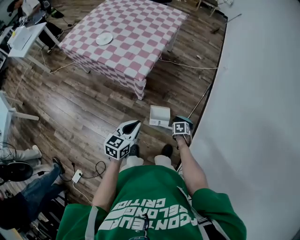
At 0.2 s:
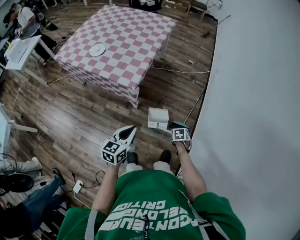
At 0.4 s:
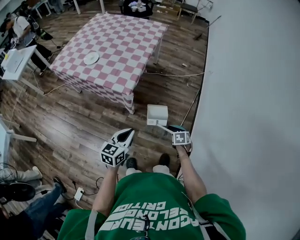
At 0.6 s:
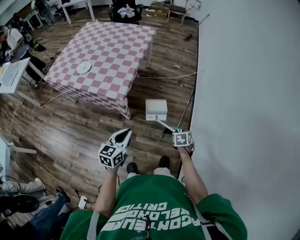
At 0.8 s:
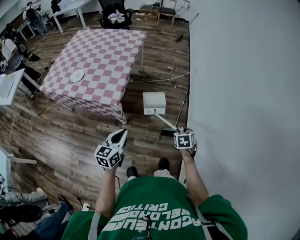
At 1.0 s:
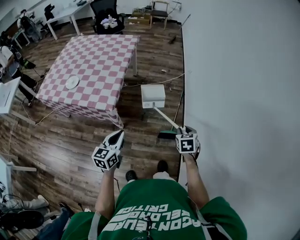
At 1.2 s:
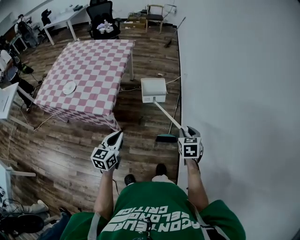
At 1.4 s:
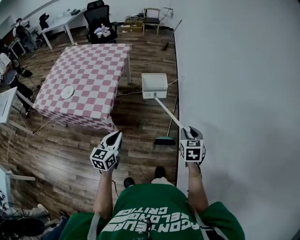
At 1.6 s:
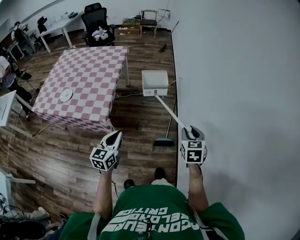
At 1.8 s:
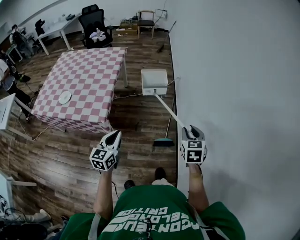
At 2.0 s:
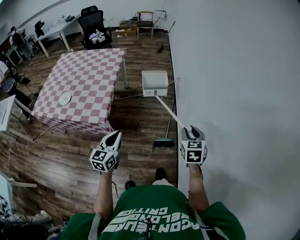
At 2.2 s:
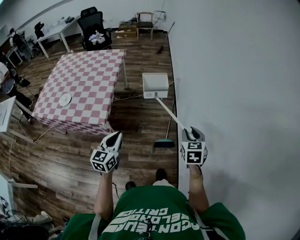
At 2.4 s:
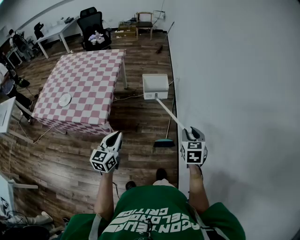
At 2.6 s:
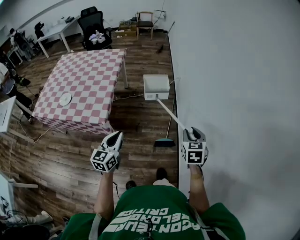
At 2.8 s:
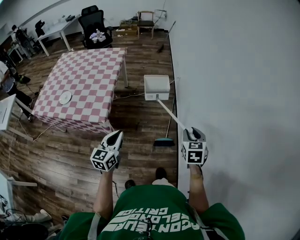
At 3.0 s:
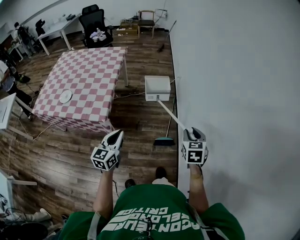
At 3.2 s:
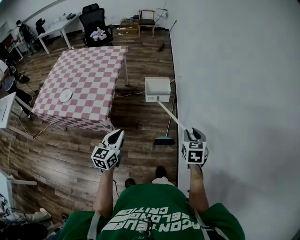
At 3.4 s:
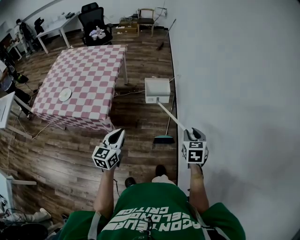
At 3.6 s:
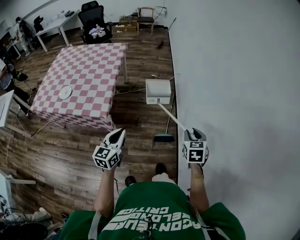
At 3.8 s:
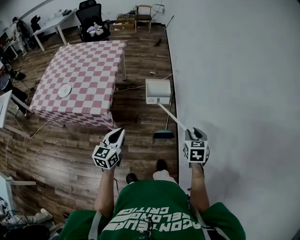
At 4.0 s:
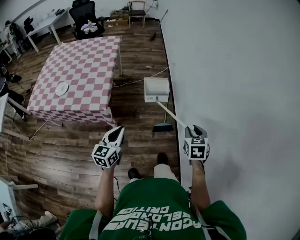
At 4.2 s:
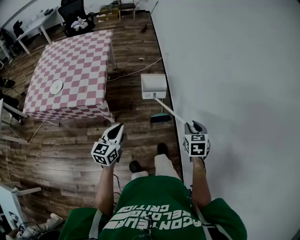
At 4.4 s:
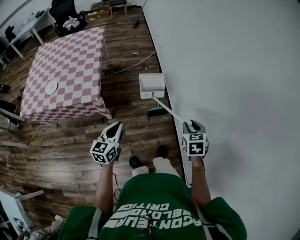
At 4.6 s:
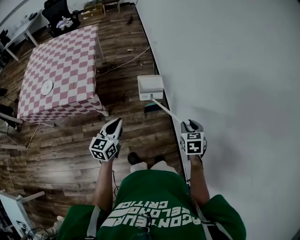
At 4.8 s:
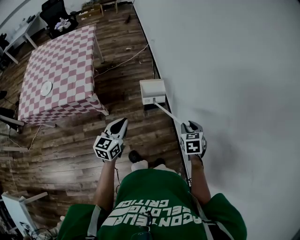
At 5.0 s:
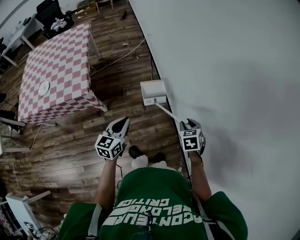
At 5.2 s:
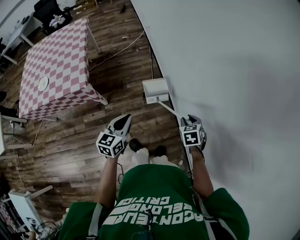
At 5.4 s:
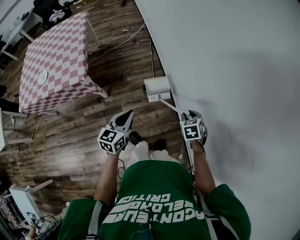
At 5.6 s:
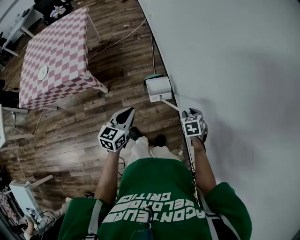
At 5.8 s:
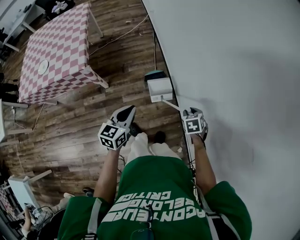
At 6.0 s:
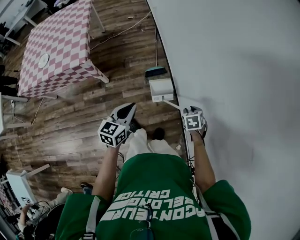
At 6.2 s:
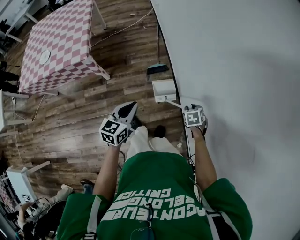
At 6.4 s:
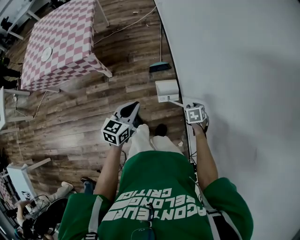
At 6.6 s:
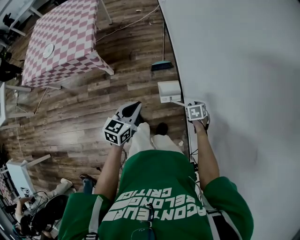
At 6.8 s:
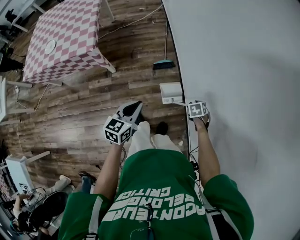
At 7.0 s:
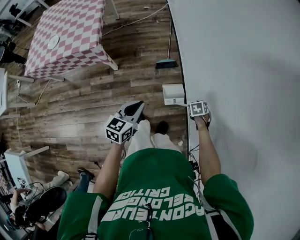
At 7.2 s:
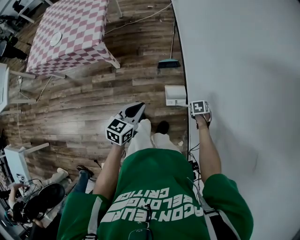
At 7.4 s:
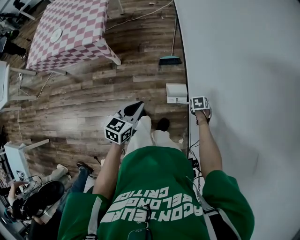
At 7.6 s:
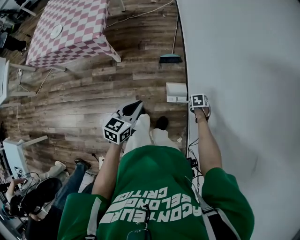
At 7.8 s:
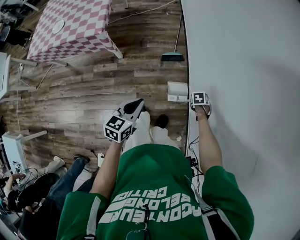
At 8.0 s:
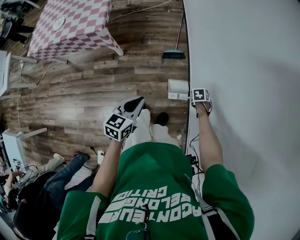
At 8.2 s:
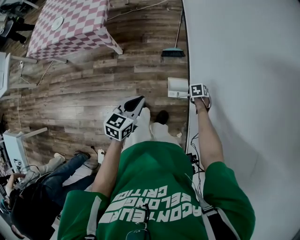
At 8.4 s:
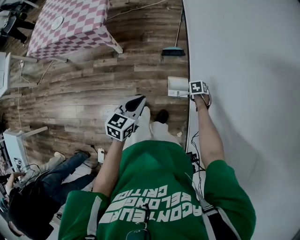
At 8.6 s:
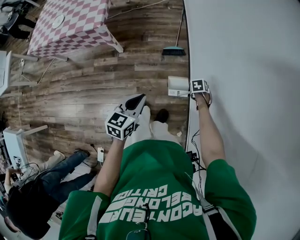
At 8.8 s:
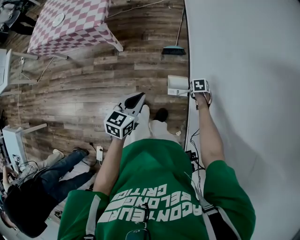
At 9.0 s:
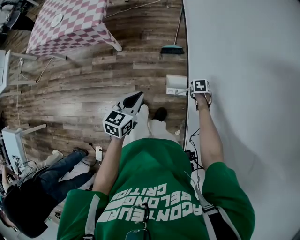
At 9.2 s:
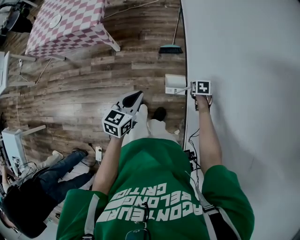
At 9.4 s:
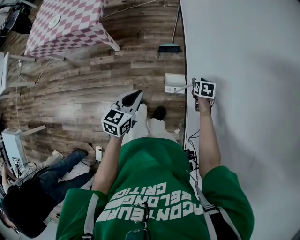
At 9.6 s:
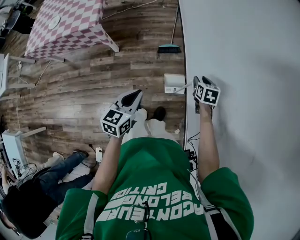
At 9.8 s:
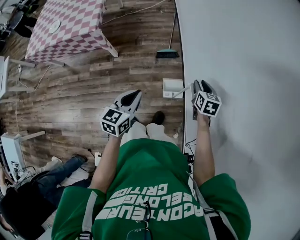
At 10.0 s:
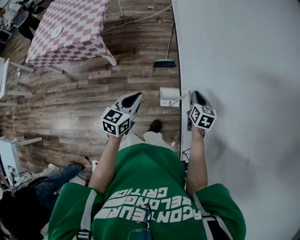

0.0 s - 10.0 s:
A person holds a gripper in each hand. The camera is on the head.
0.0 s - 1.4 s: The left gripper changes place by approximately 15 cm. The right gripper travels upward by roughly 35 cm, and tilts its fingers approximately 40 degrees upward.
1.4 s - 2.8 s: The grippers stay close to where they were, moving slightly.
2.8 s - 4.2 s: The right gripper goes roughly 15 cm backward; the left gripper goes about 10 cm backward.
4.2 s - 5.8 s: The right gripper travels to the right, downward and backward by roughly 30 cm, and turns by approximately 20 degrees. Meanwhile the left gripper goes approximately 25 cm to the right.
5.8 s - 7.2 s: The right gripper moves downward, about 15 cm, while the left gripper shifts by roughly 5 cm.
7.2 s - 8.6 s: The right gripper ends up some 5 cm from where it was.
8.6 s - 10.0 s: The right gripper is displaced upward by some 25 cm, tilts its fingers some 40 degrees upward, and closes its fingers.

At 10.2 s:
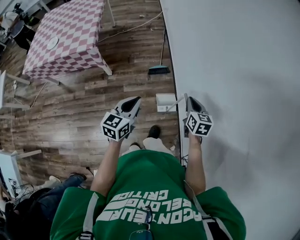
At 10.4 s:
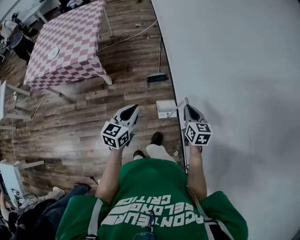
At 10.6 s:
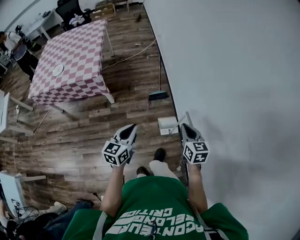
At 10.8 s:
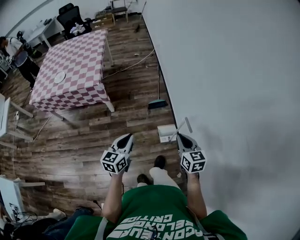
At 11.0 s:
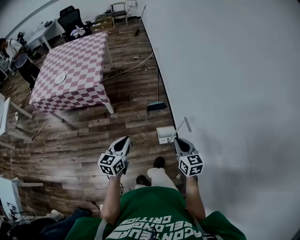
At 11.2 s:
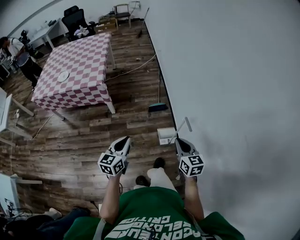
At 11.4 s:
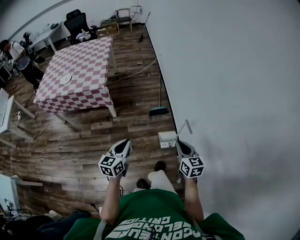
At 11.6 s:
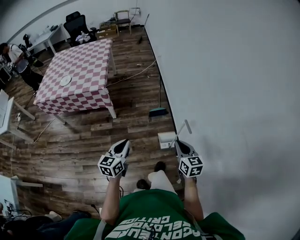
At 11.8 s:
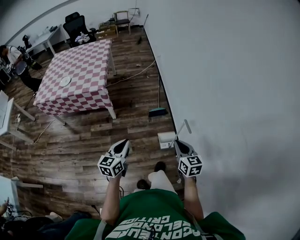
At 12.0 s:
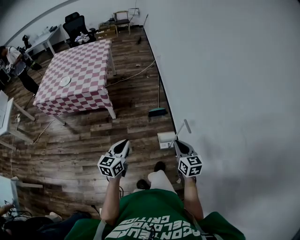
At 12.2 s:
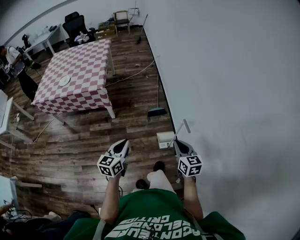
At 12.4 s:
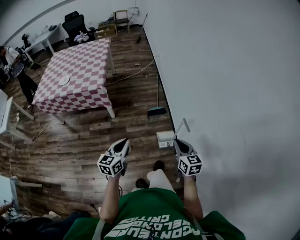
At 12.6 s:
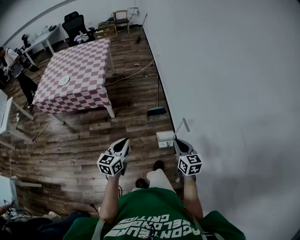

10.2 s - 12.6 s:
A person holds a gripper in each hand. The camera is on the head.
10.2 s - 11.4 s: The two grippers go some 20 cm backward and to the left.
11.4 s - 12.6 s: The grippers stay close to where they were, moving slightly.

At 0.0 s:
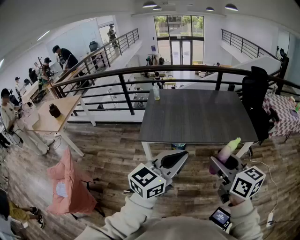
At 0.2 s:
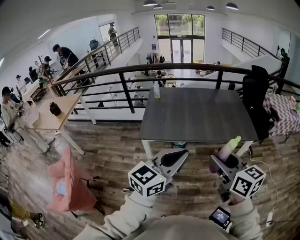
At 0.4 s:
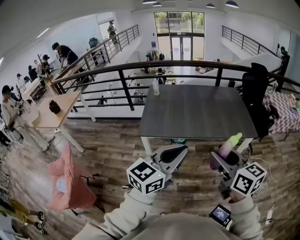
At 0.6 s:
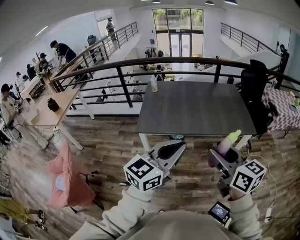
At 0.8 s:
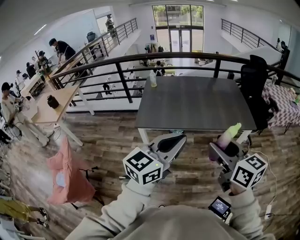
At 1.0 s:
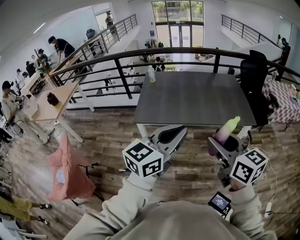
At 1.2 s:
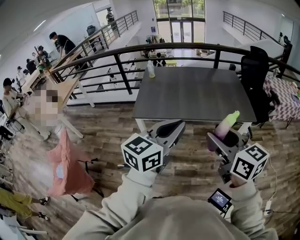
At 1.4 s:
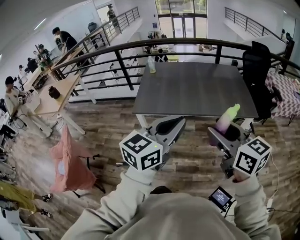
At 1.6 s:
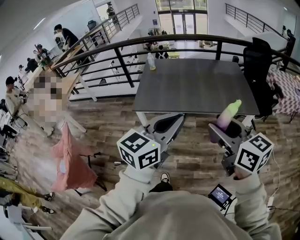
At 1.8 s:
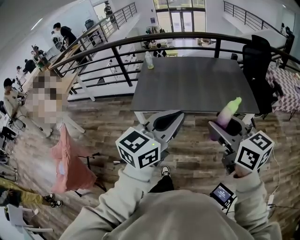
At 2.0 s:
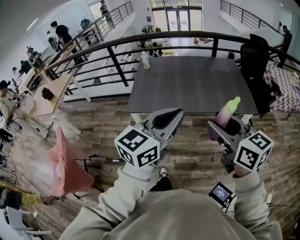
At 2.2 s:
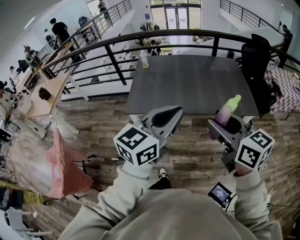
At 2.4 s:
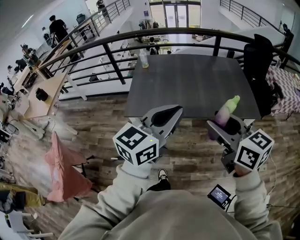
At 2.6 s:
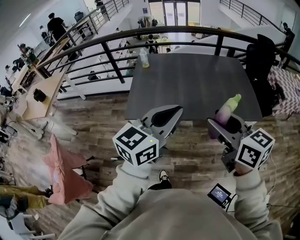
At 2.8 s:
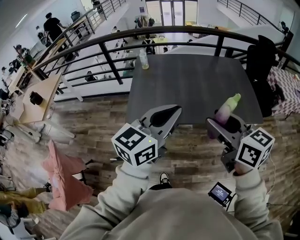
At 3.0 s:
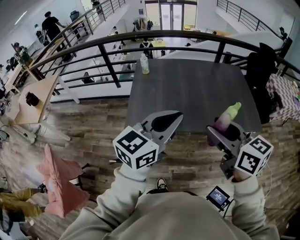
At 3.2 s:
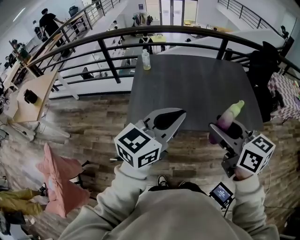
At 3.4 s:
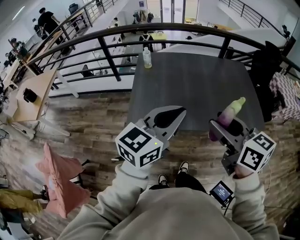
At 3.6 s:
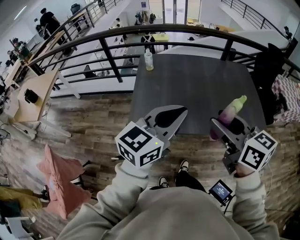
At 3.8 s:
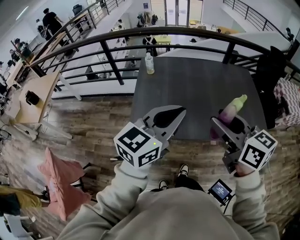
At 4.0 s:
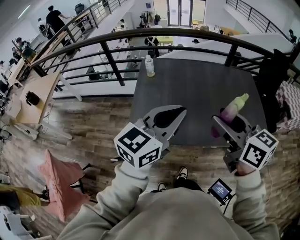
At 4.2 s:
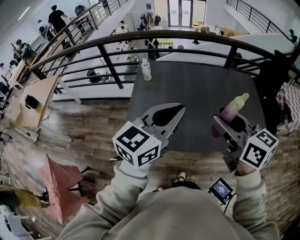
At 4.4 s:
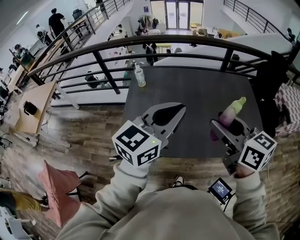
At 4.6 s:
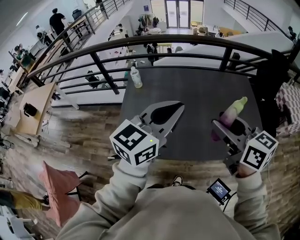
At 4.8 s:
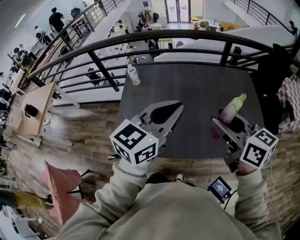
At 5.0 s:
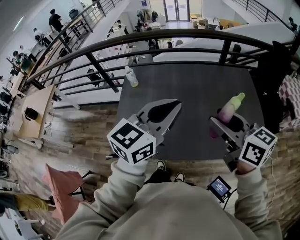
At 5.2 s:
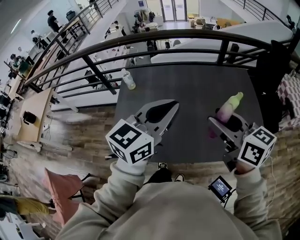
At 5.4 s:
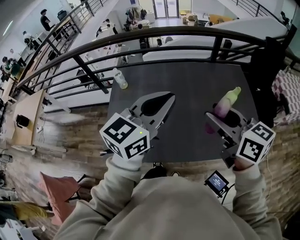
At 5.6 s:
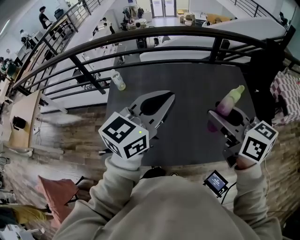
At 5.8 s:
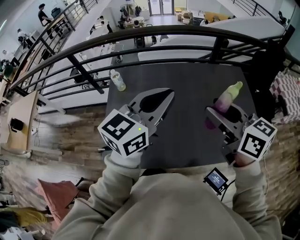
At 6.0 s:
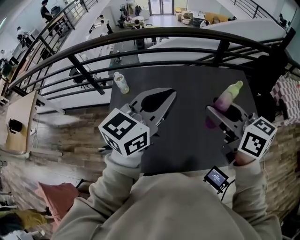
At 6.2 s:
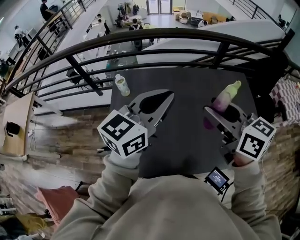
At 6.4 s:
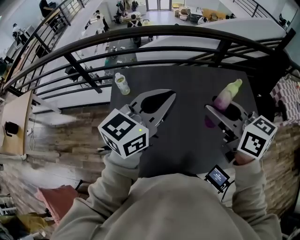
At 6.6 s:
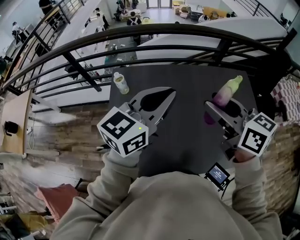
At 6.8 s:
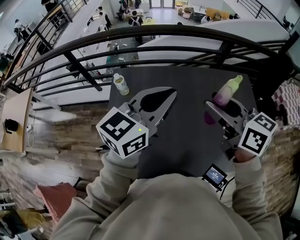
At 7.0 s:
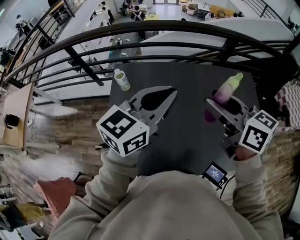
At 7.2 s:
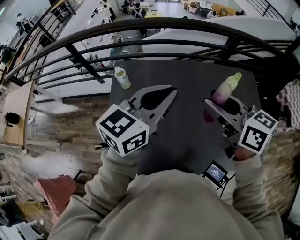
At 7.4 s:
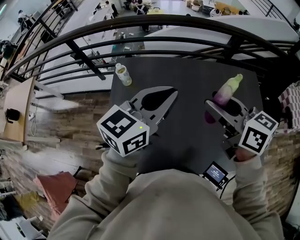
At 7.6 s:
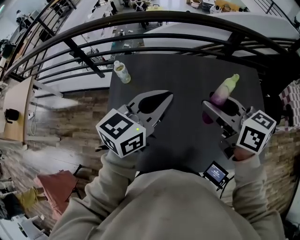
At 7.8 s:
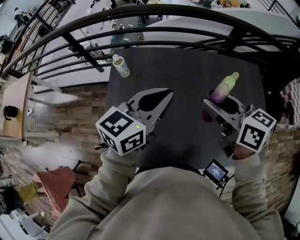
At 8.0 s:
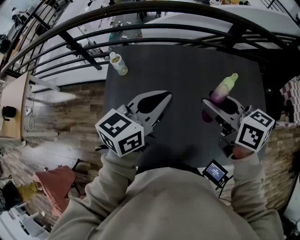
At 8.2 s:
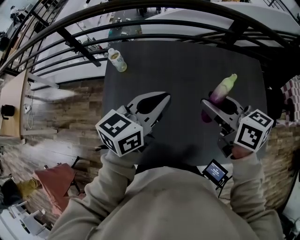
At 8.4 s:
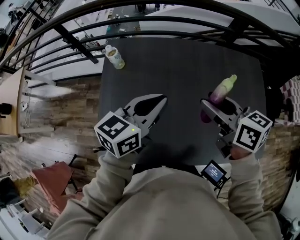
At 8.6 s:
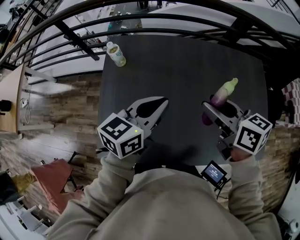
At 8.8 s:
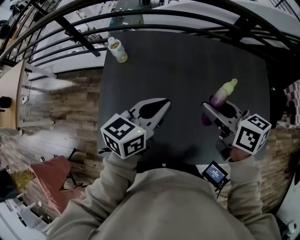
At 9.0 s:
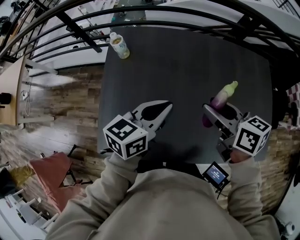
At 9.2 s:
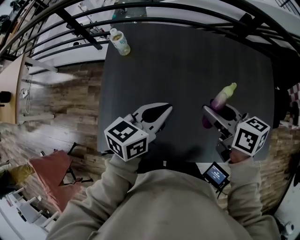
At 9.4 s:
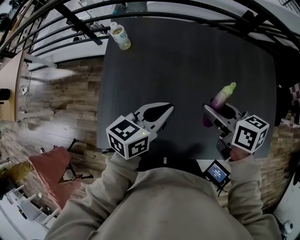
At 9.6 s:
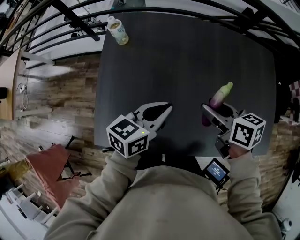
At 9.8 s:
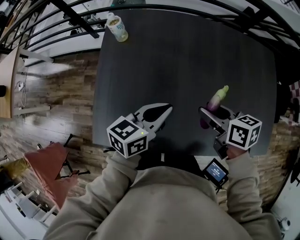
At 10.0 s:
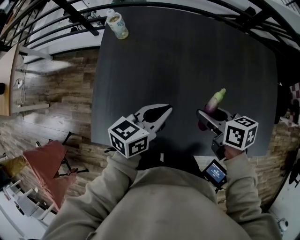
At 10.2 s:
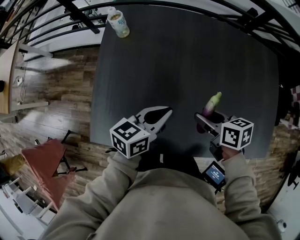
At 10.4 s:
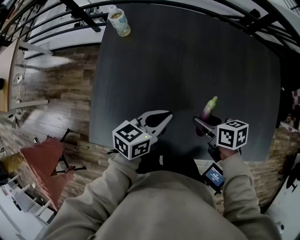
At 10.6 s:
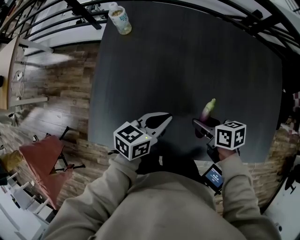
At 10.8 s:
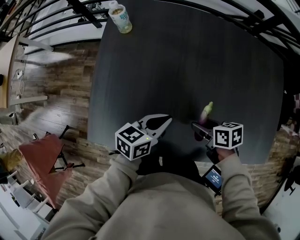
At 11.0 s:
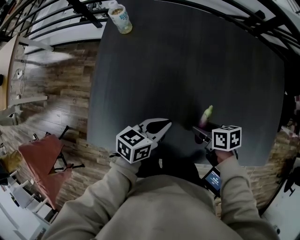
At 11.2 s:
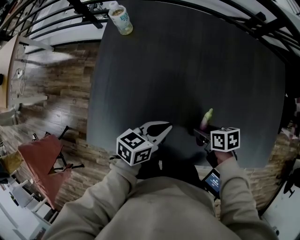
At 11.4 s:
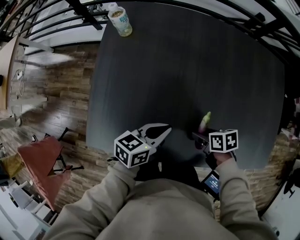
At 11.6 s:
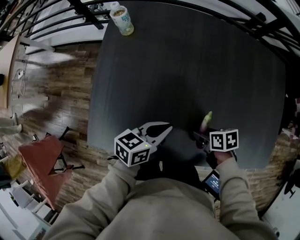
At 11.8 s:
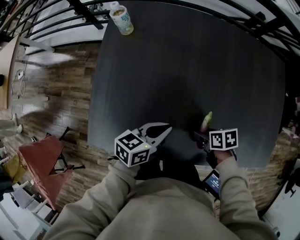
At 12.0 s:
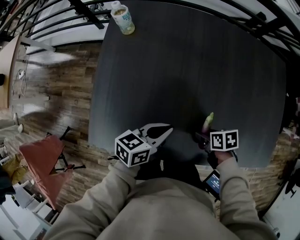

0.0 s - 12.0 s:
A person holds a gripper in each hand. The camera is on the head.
0.0 s - 1.6 s: The left gripper moves to the right, approximately 5 cm.
1.6 s - 3.0 s: Both grippers move forward and to the left, approximately 20 cm.
3.0 s - 4.4 s: Both grippers move forward, approximately 20 cm.
4.4 s - 6.0 s: Both grippers move forward, about 15 cm.
6.0 s - 7.6 s: The right gripper moves forward, downward and to the left, roughly 10 cm; the left gripper is displaced downward and forward by roughly 10 cm.
7.6 s - 9.0 s: Both grippers move downward, about 15 cm.
9.0 s - 10.4 s: Both grippers travel together downward and backward, some 15 cm. The right gripper turns by about 20 degrees.
10.4 s - 12.0 s: The right gripper heads downward, covering roughly 10 cm, and rotates approximately 20 degrees, while the left gripper shifts by some 5 cm.
